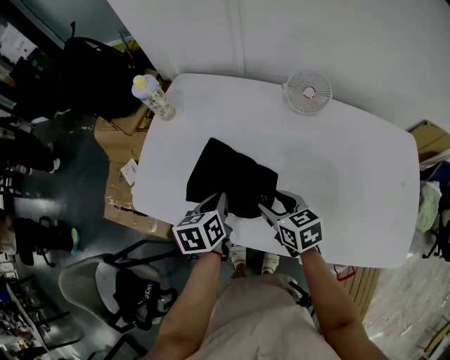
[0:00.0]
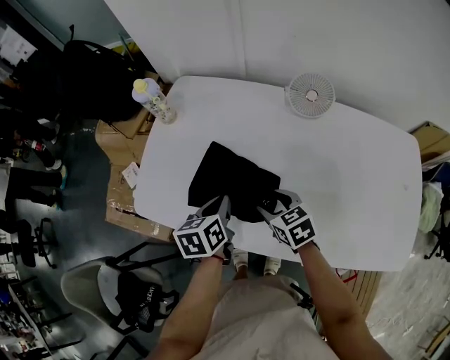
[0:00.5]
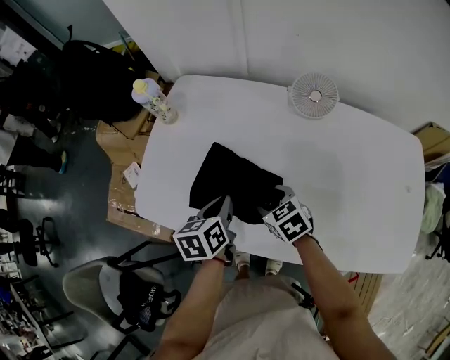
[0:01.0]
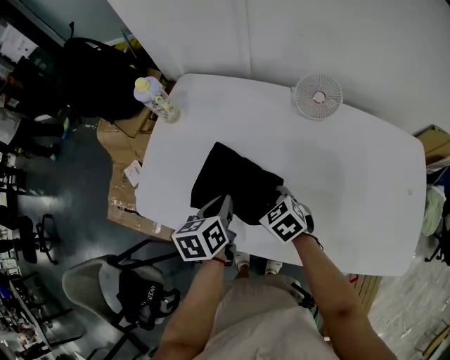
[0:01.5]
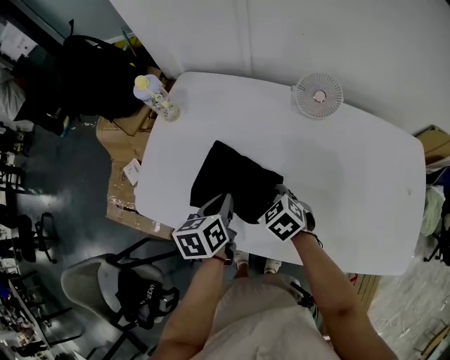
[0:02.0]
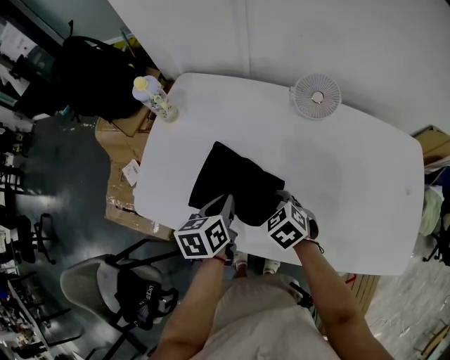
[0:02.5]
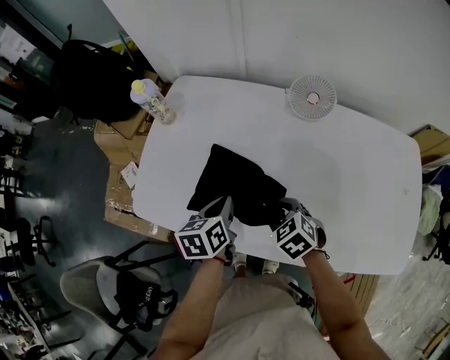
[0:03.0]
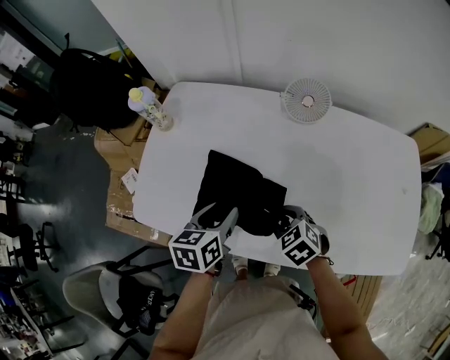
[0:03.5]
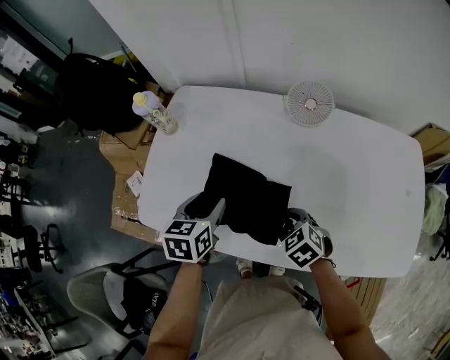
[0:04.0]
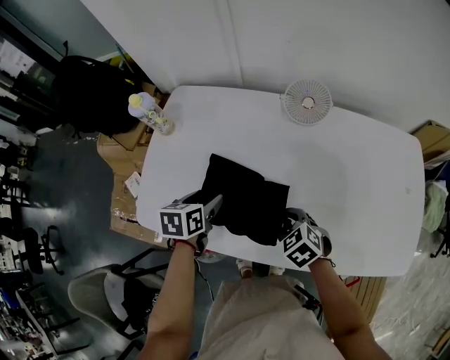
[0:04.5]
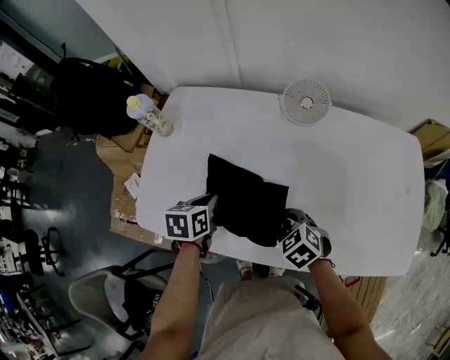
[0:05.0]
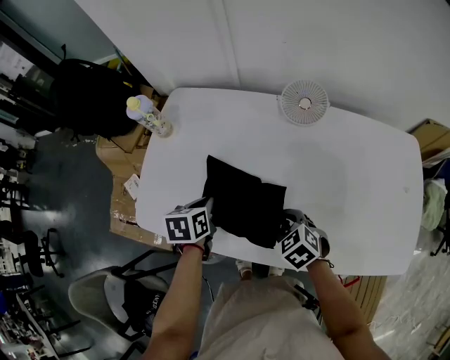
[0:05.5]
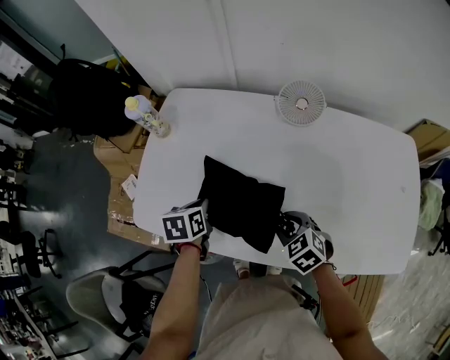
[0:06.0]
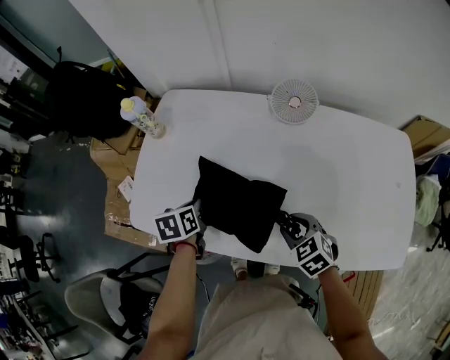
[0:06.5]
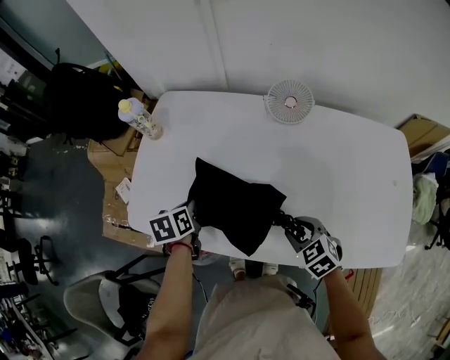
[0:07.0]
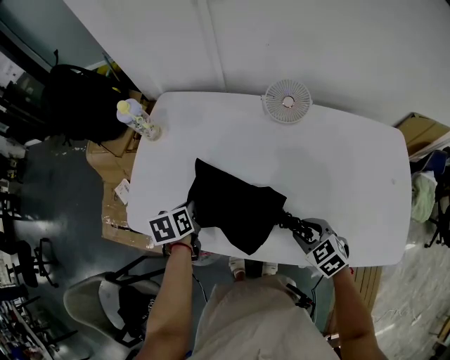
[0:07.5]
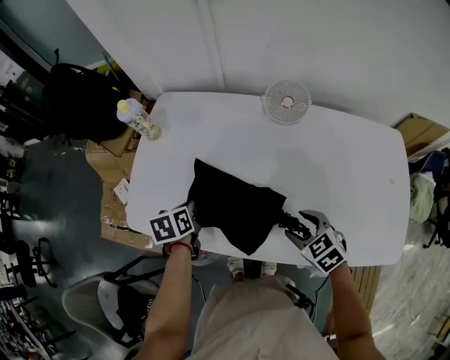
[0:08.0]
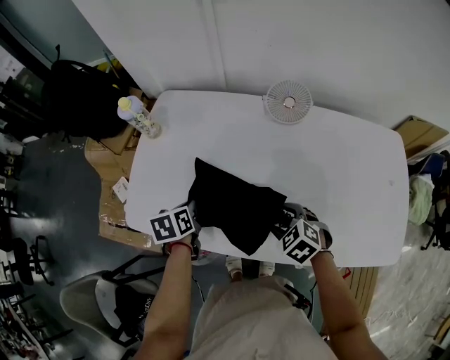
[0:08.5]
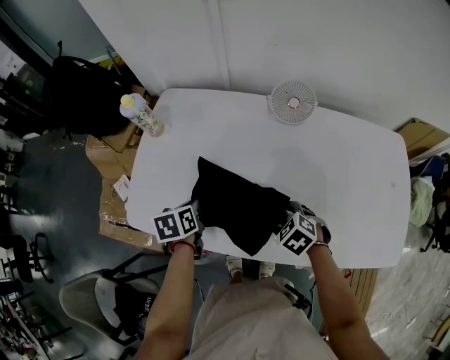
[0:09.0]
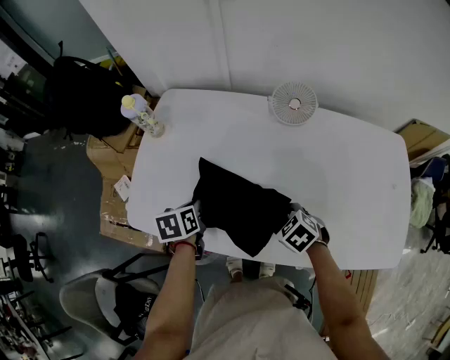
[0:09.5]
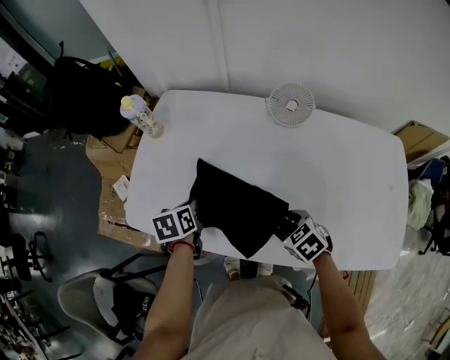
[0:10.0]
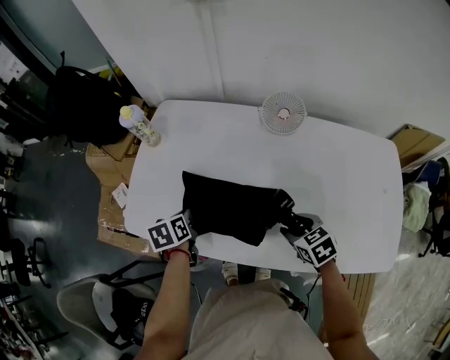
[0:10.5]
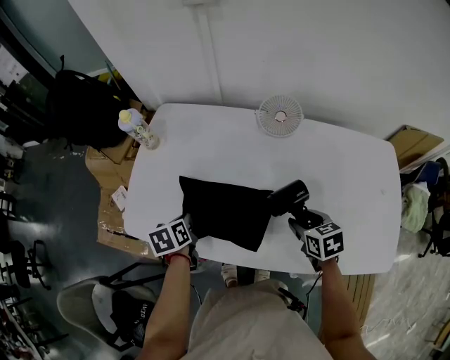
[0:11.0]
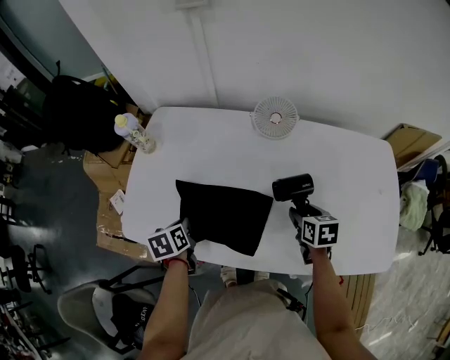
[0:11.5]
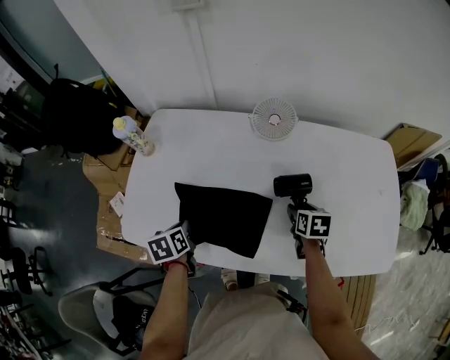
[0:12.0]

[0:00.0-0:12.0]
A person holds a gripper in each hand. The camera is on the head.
0:00.0 to 0:02.0: The right gripper changes place by about 5 cm, and rotates about 30 degrees.
0:02.0 to 0:04.0: The left gripper turns by roughly 20 degrees, and opens. The right gripper shifts roughly 10 cm to the right and backward.
0:04.0 to 0:06.0: The left gripper goes roughly 5 cm downward, and closes up.
0:06.0 to 0:08.0: The right gripper heads to the right, covering some 5 cm, and opens.
0:10.0 to 0:12.0: The right gripper moves to the right and forward, some 15 cm, and twists some 50 degrees clockwise, seen from behind.

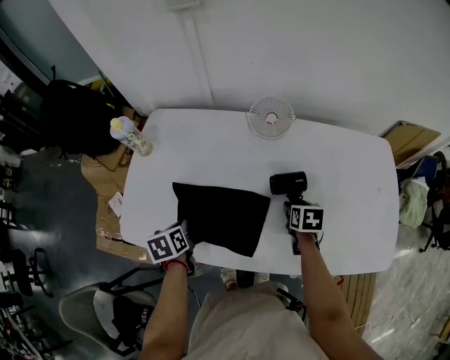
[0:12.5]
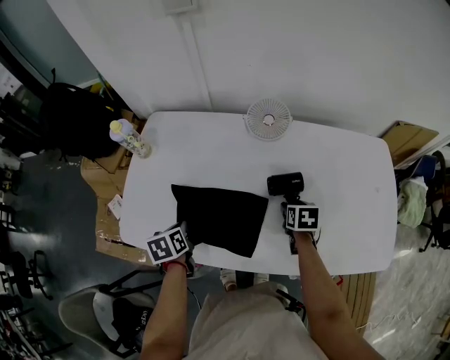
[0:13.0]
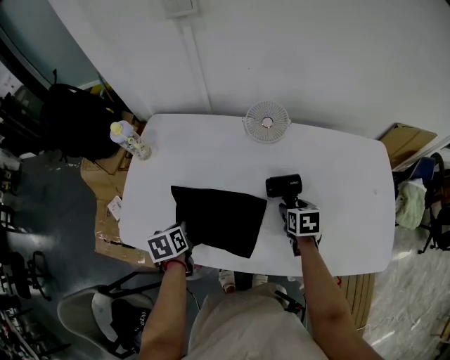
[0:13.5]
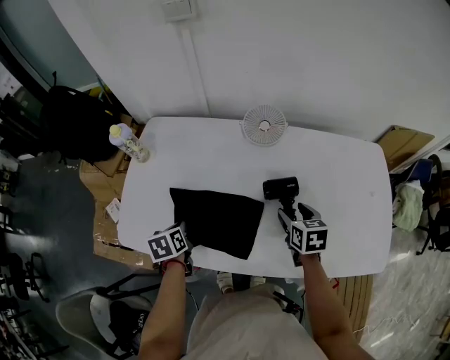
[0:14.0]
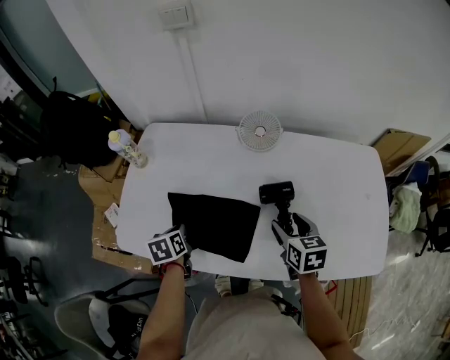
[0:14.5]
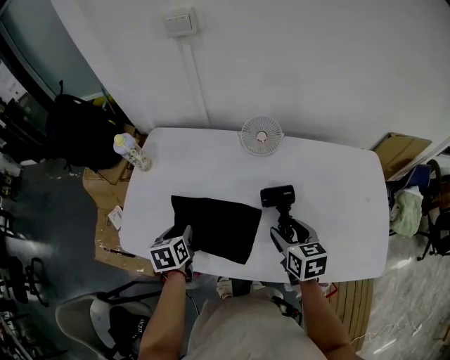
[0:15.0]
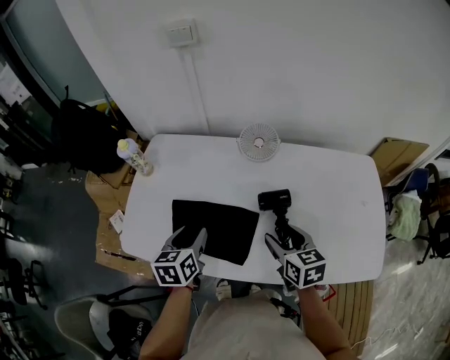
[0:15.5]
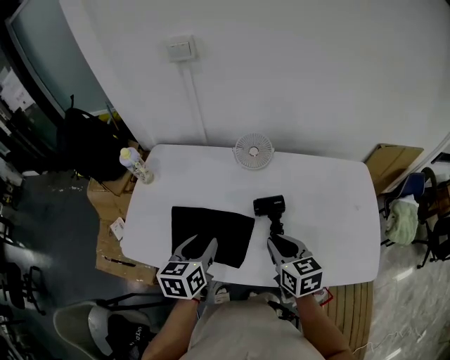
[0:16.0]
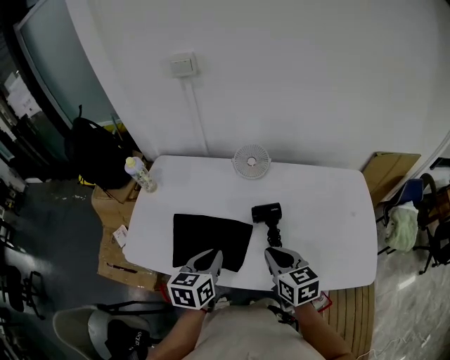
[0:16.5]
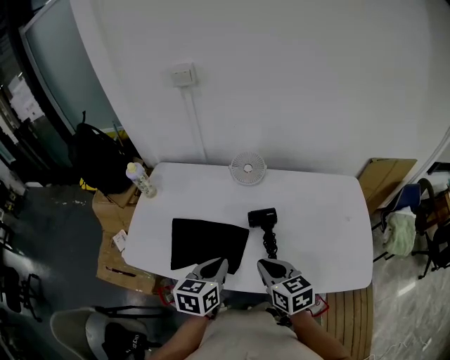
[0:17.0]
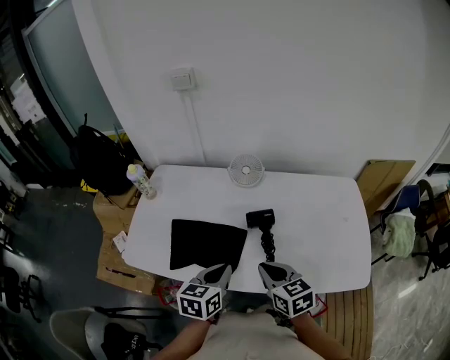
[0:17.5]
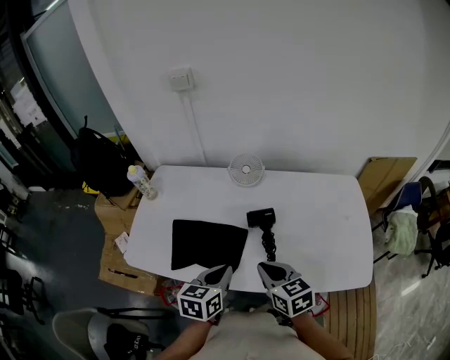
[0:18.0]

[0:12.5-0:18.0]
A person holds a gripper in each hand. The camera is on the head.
0:12.5 to 0:14.5: The right gripper goes about 10 cm upward, and swivels roughly 20 degrees.
0:14.5 to 0:16.0: The left gripper goes approximately 20 cm upward and to the right, swivels about 30 degrees, and opens its fingers, while the right gripper travels upward by roughly 5 cm, and closes its fingers.
0:16.0 to 0:18.0: The right gripper shifts roughly 10 cm backward. The left gripper heads backward and to the right, covering roughly 10 cm, and closes.

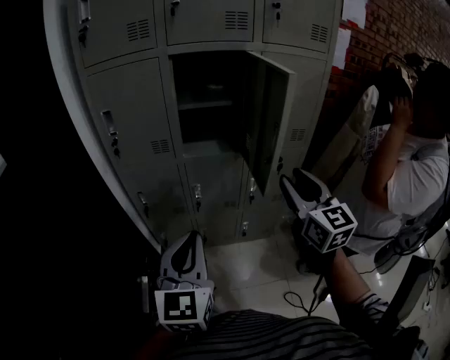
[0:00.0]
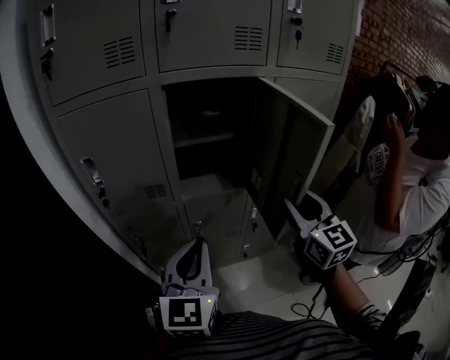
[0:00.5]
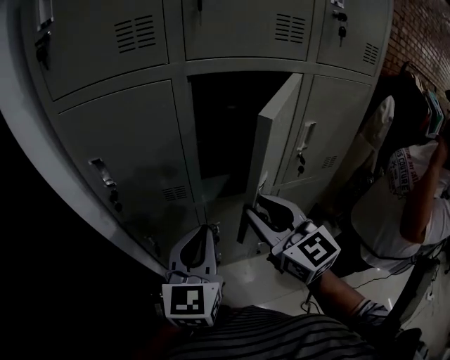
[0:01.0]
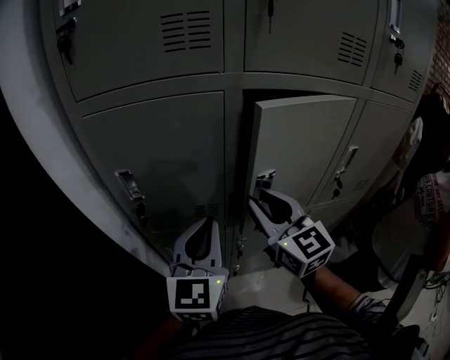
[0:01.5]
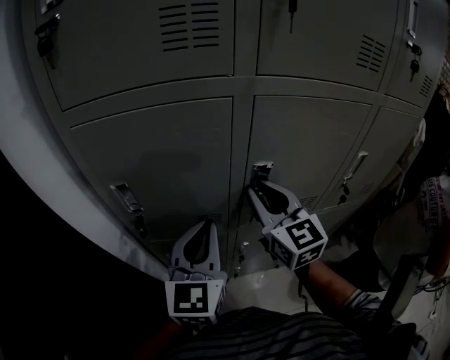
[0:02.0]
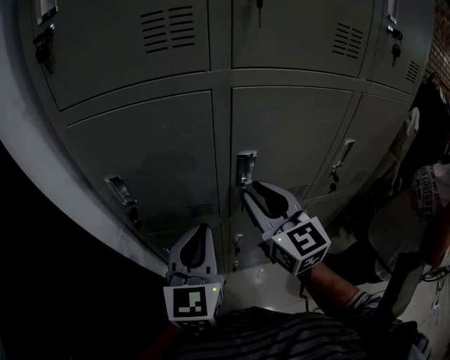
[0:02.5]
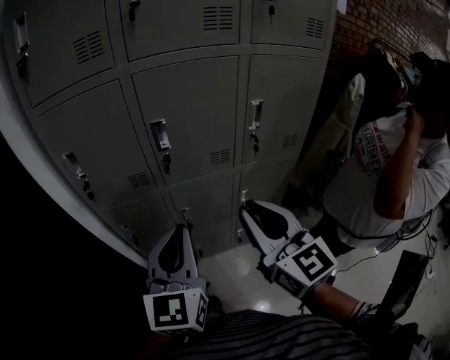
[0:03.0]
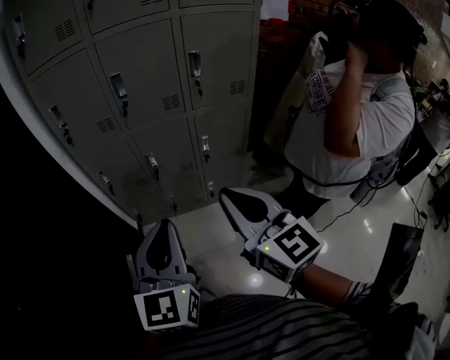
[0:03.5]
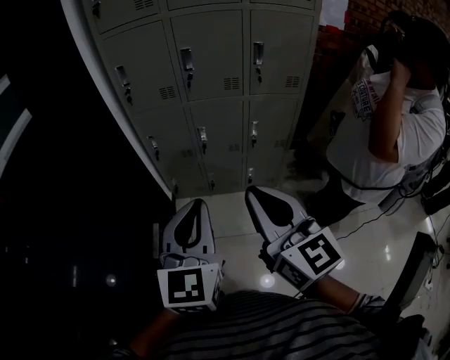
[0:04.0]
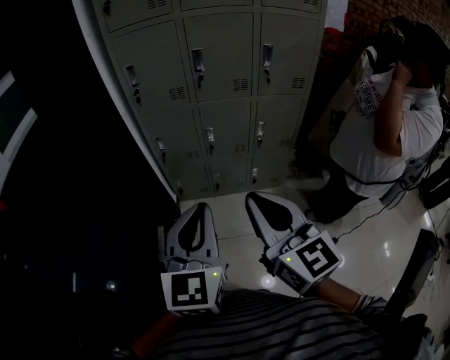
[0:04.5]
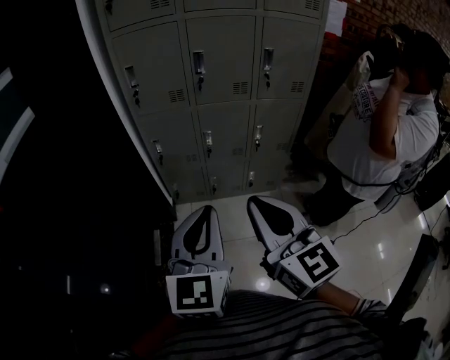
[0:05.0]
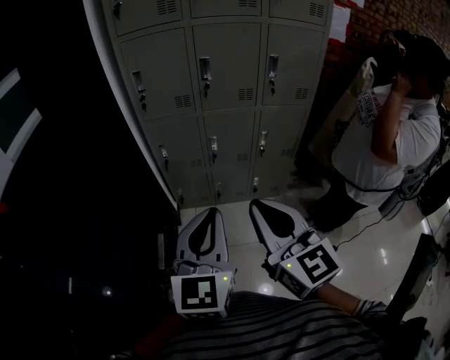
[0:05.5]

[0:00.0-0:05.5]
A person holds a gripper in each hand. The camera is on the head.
0:00.0 to 0:02.0: The right gripper shifts approximately 40 cm forward and to the left. Meanwhile the left gripper moves forward, roughly 35 cm.
0:02.0 to 0:03.5: Both grippers are carried backward, about 50 cm.
0:03.5 to 0:05.5: The two grippers go approximately 15 cm to the left and backward.

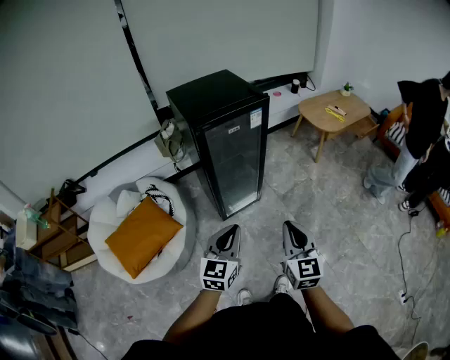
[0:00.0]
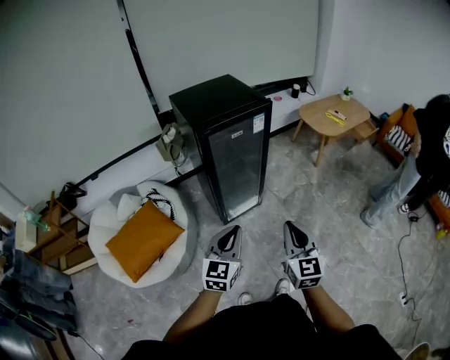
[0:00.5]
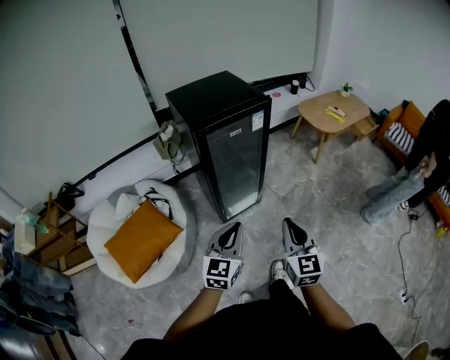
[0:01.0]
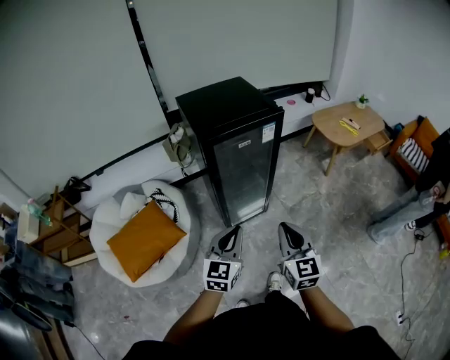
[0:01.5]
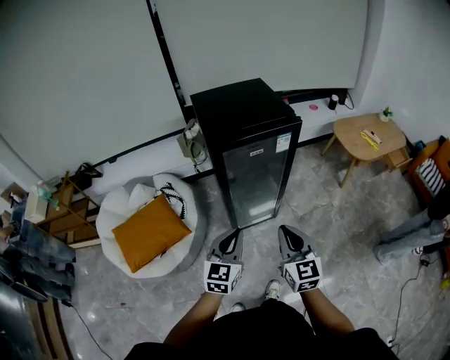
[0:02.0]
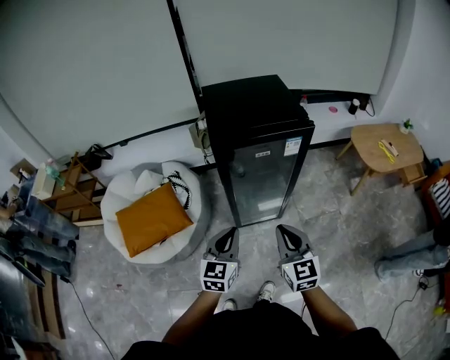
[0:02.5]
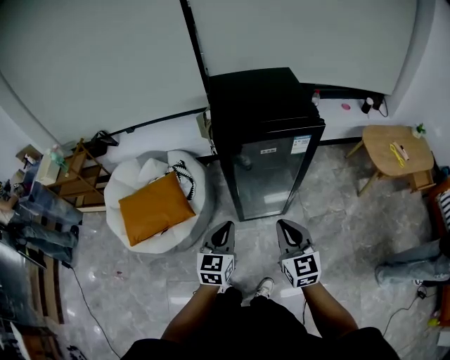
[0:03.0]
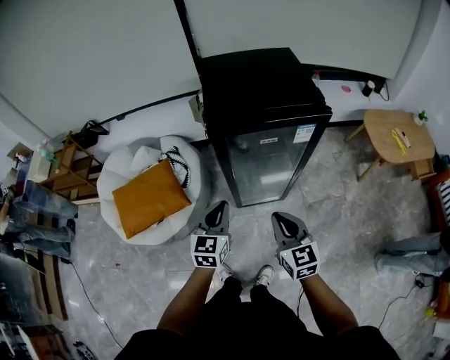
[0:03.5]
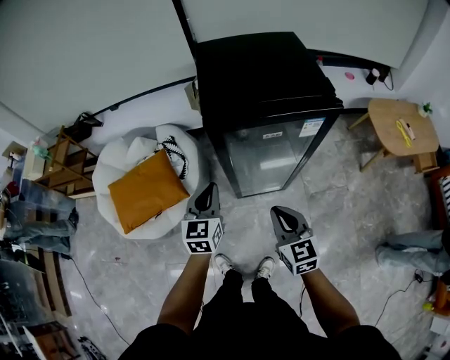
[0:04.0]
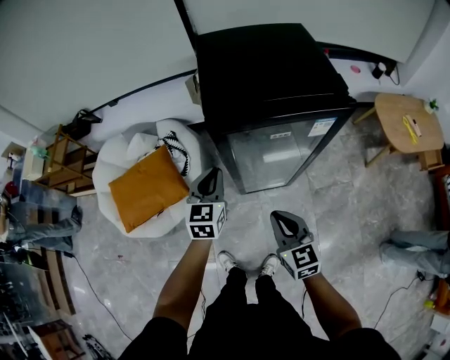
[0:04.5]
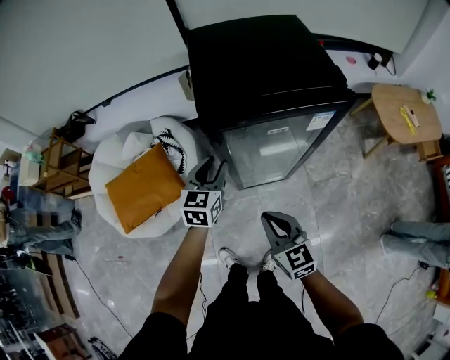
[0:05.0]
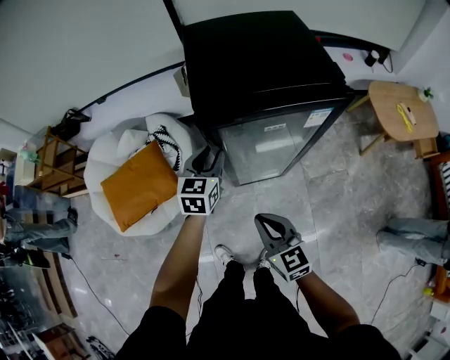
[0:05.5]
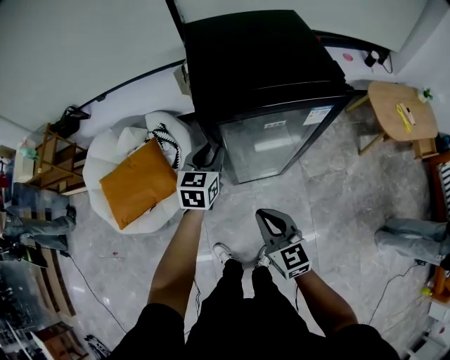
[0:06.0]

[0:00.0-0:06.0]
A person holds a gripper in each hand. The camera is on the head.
0:00.0 to 0:02.0: Both grippers move forward, some 15 cm.
0:02.0 to 0:04.0: The right gripper shifts some 15 cm forward and downward, and swivels approximately 20 degrees; the left gripper shifts roughly 15 cm forward, and changes its angle by about 20 degrees.
0:04.0 to 0:06.0: The right gripper goes roughly 5 cm to the left. Meanwhile the left gripper shifts approximately 10 cm forward, and opens its fingers.
